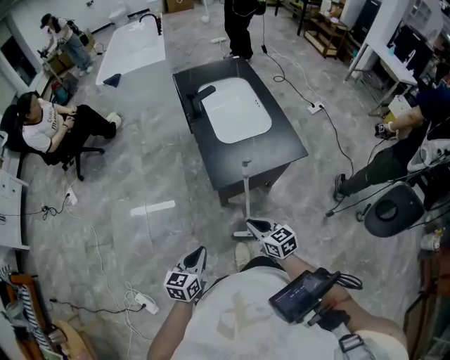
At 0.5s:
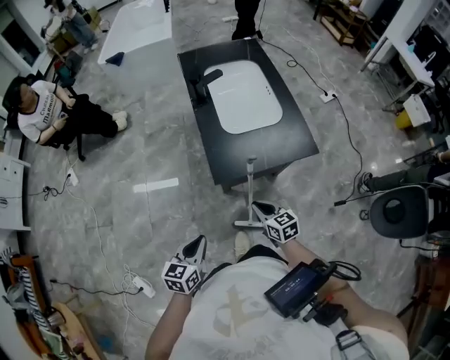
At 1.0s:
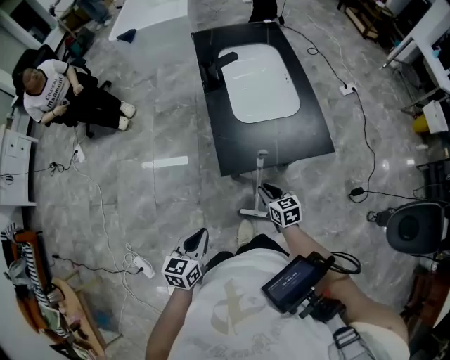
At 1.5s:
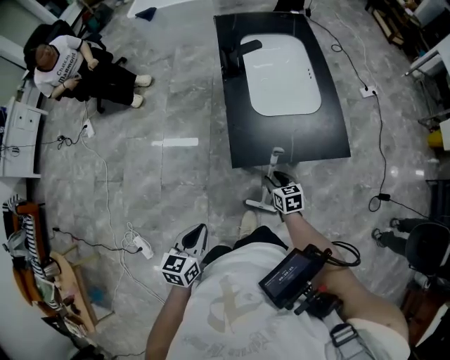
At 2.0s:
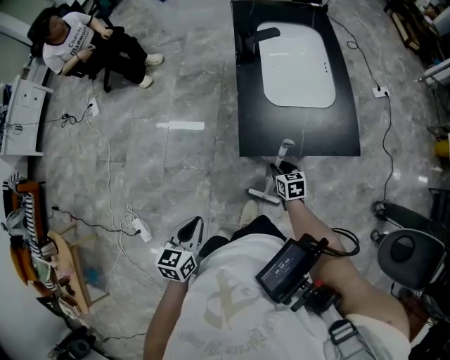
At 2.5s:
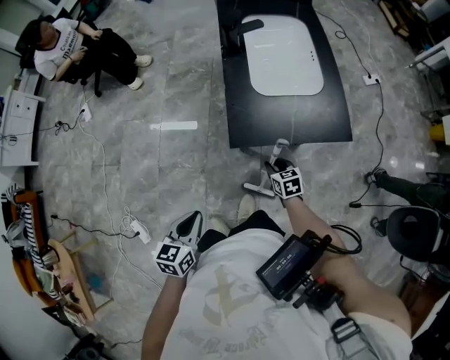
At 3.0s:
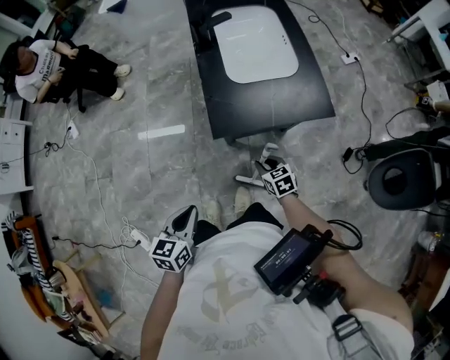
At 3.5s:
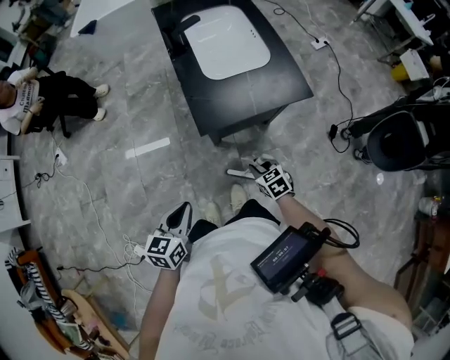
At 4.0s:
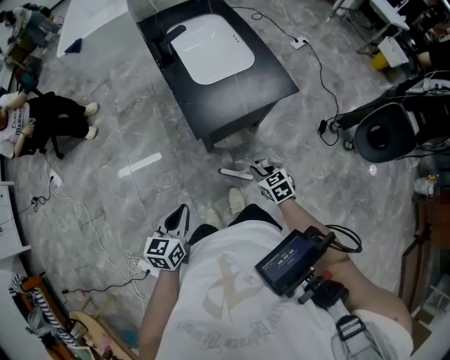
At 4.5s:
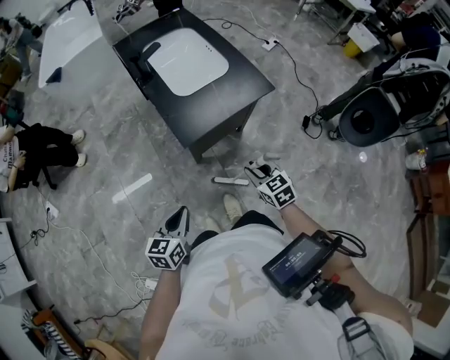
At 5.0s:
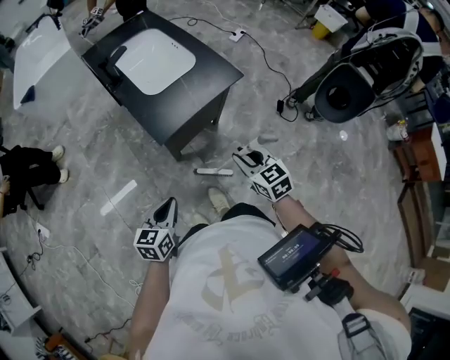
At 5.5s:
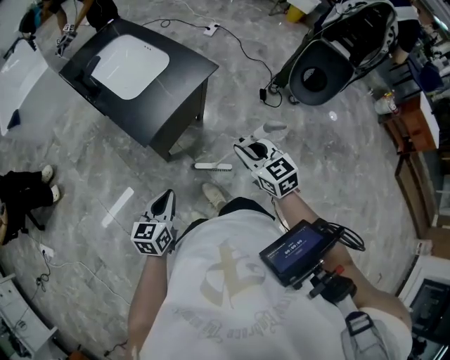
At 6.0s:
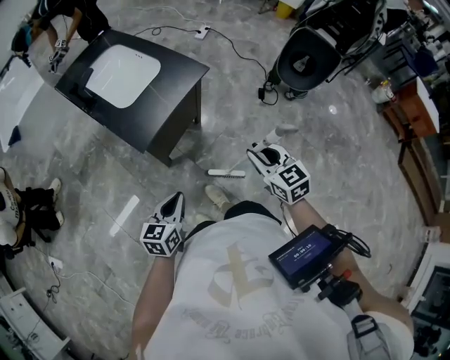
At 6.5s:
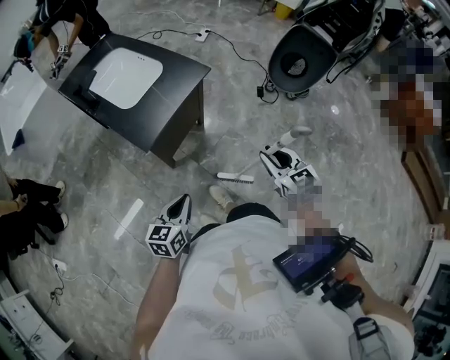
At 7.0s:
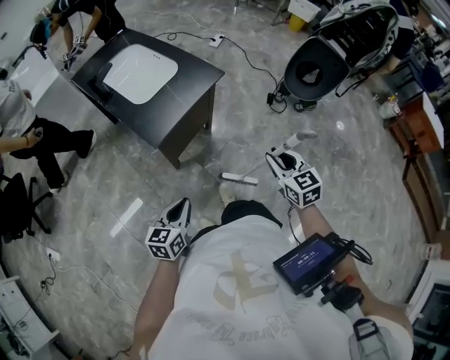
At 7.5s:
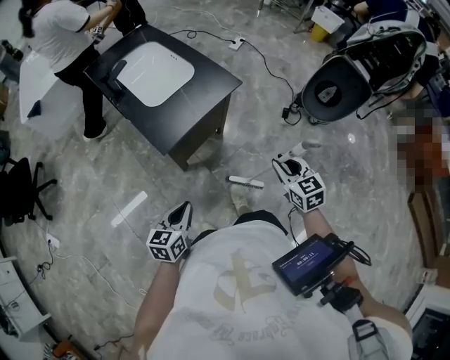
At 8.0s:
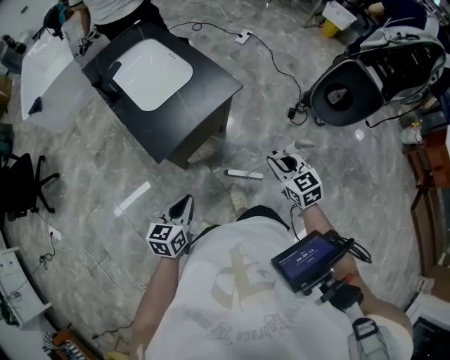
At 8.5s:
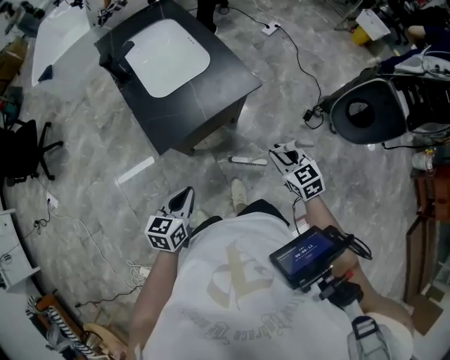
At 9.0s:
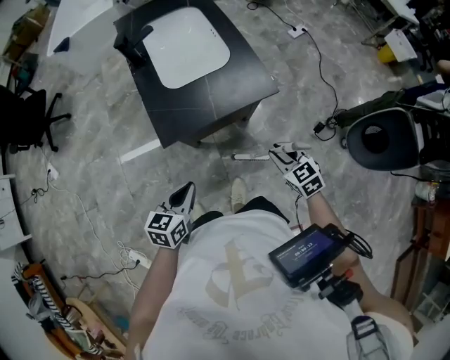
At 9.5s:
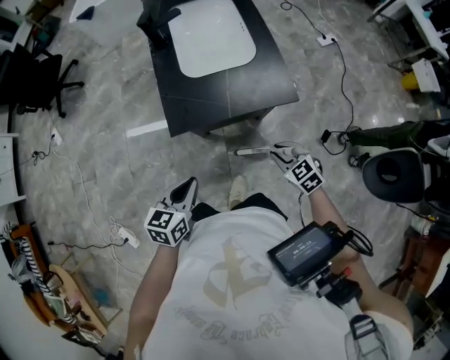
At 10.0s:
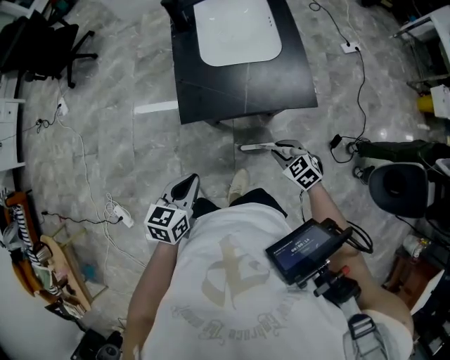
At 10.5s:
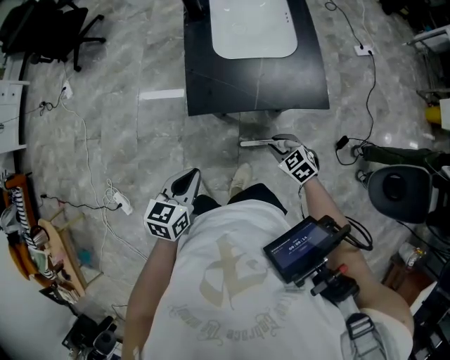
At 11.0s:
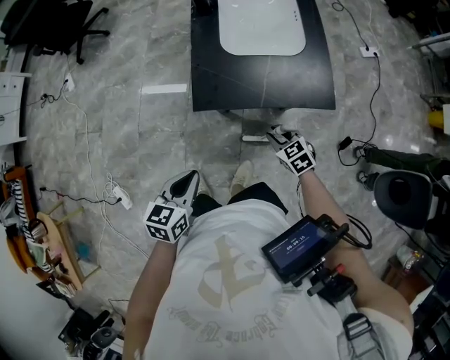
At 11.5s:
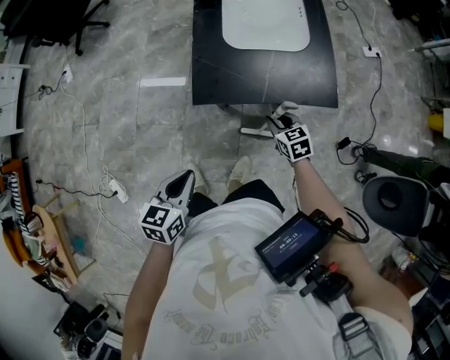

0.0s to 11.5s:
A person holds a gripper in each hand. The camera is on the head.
0.0s to 2.0s: The left gripper turns by about 20 degrees; the right gripper travels downward and forward by approximately 25 cm, and opens up.
2.0s to 4.0s: The right gripper heads backward and upward, covering some 15 cm, while the left gripper rotates about 20 degrees.
4.0s to 6.0s: The right gripper heads upward, covering some 20 cm, and changes its angle by roughly 30 degrees. Meanwhile the left gripper shifts by roughly 10 cm, and swivels about 30 degrees.
6.0s to 7.5s: The right gripper shifts by some 5 cm.
7.5s to 9.5s: The left gripper changes place by approximately 15 cm, and turns by some 30 degrees, while the right gripper shifts by roughly 25 cm, and swivels some 50 degrees.
9.5s to 11.5s: The right gripper shifts about 15 cm forward, downward and to the left, while the left gripper shifts roughly 5 cm to the left.

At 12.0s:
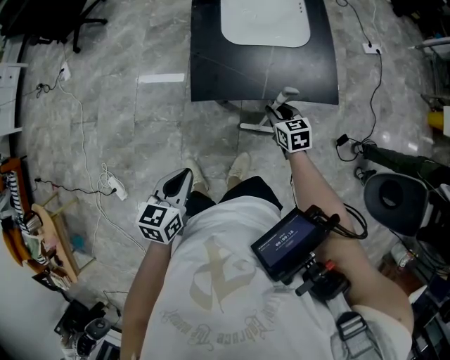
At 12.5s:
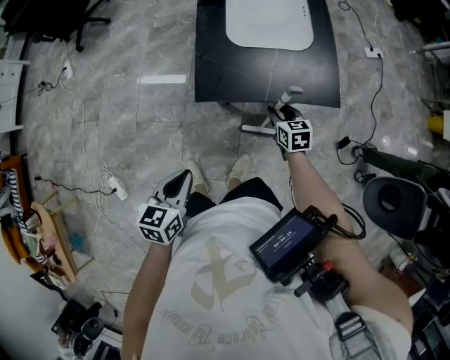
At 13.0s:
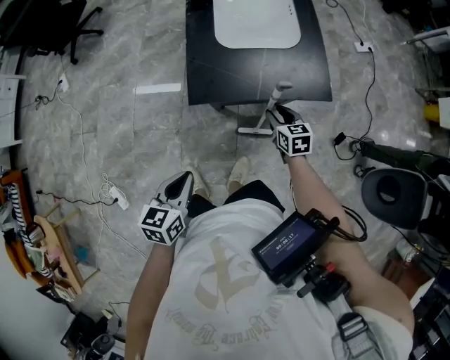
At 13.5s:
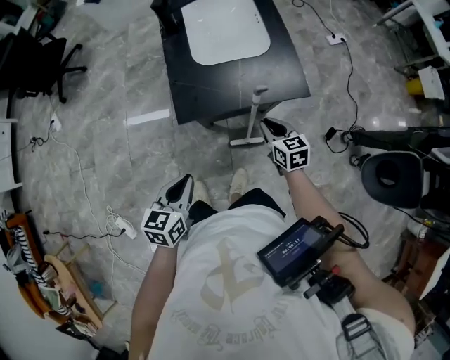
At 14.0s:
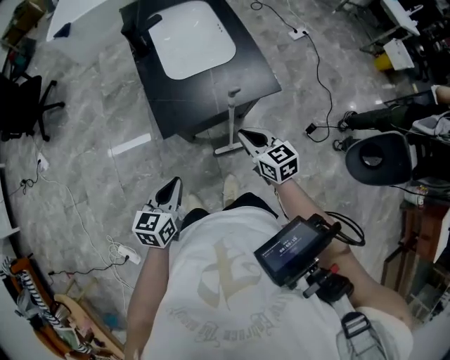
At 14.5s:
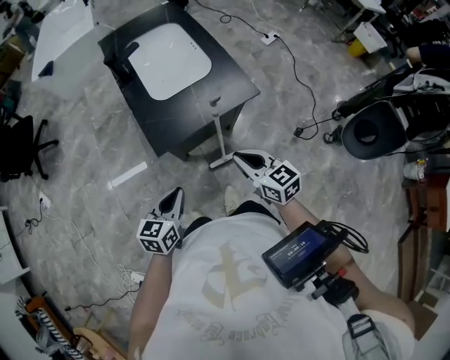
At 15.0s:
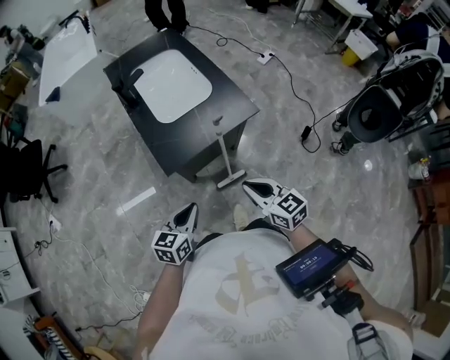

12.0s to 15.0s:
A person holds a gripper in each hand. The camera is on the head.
12.0s to 13.5s: The right gripper moves upward, approximately 10 cm.
13.5s to 15.0s: The left gripper changes its angle by roughly 20 degrees; the right gripper travels backward and upward by some 20 cm.

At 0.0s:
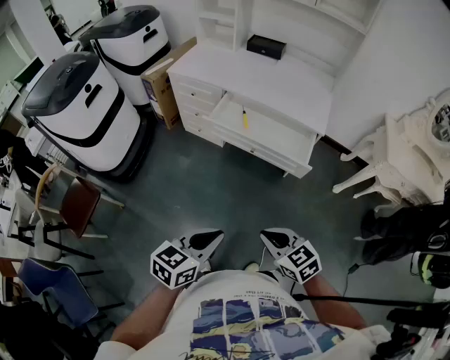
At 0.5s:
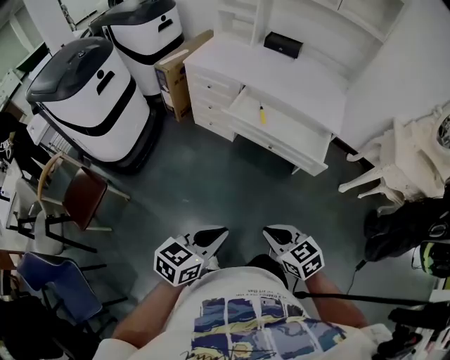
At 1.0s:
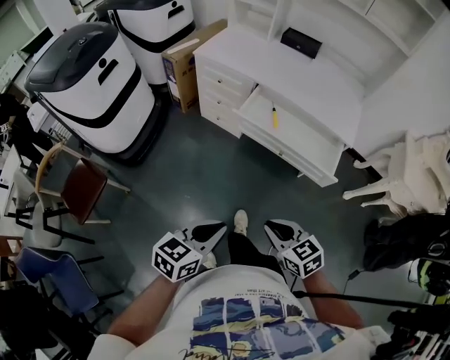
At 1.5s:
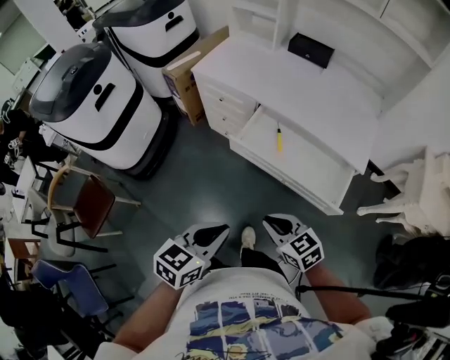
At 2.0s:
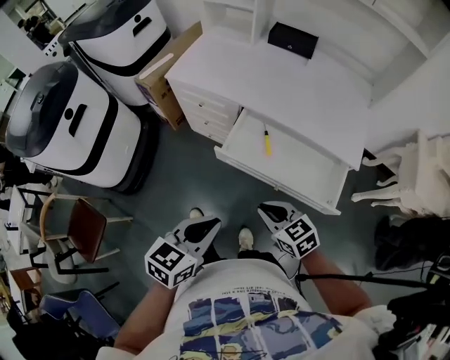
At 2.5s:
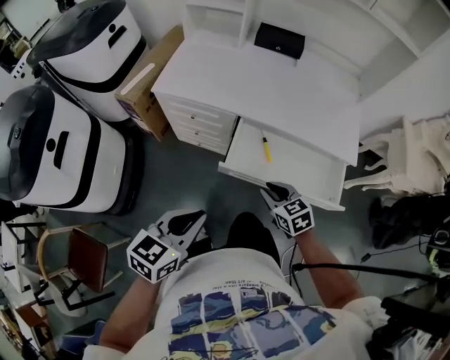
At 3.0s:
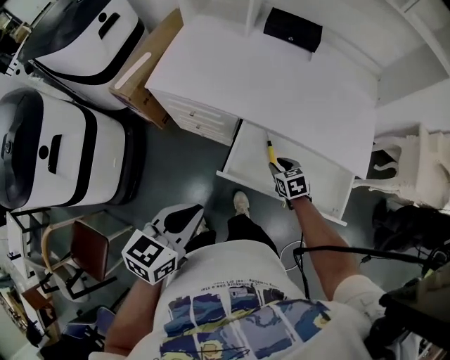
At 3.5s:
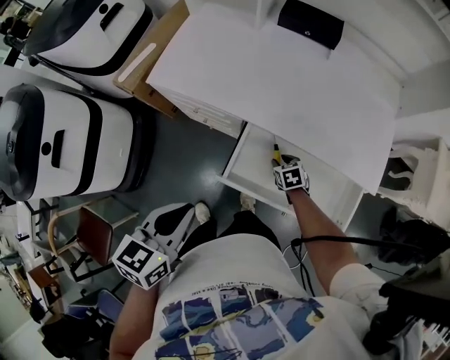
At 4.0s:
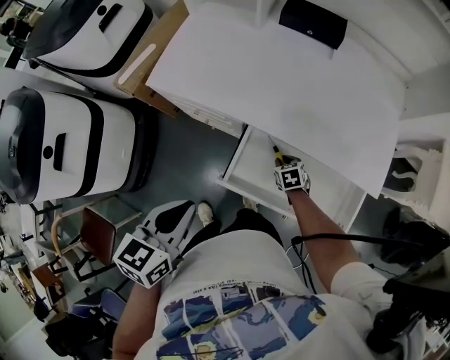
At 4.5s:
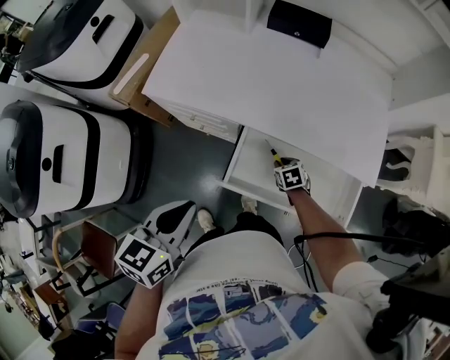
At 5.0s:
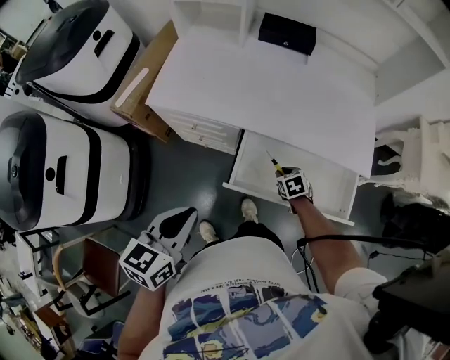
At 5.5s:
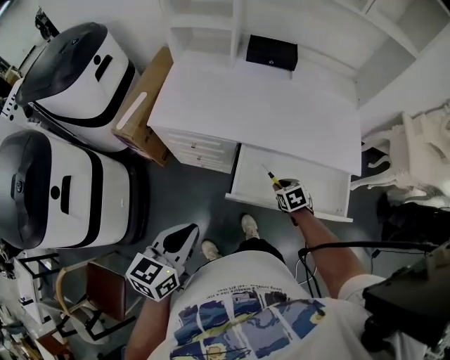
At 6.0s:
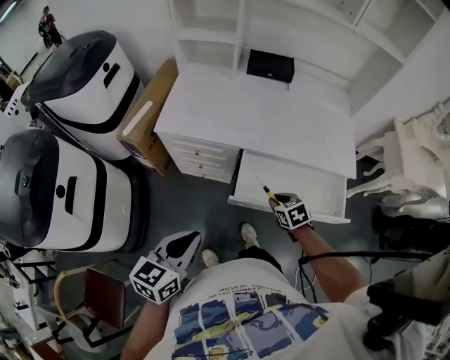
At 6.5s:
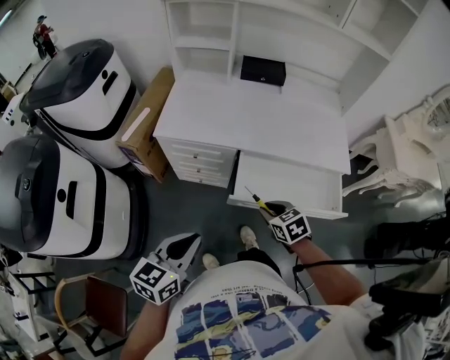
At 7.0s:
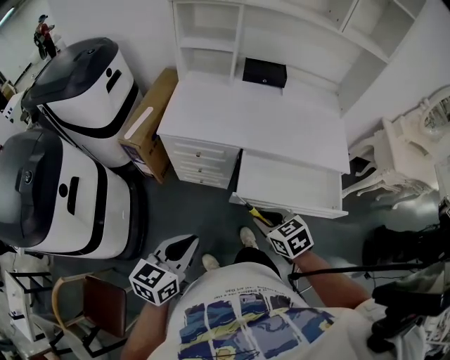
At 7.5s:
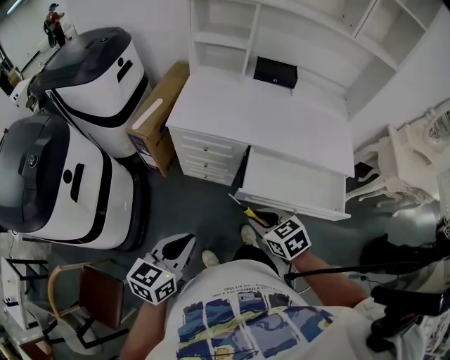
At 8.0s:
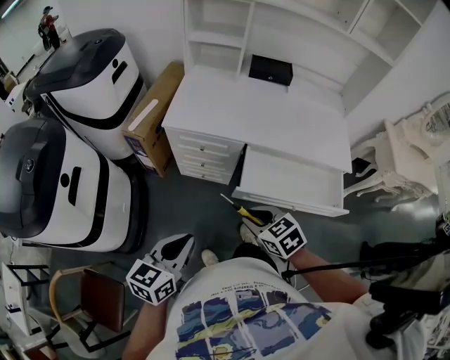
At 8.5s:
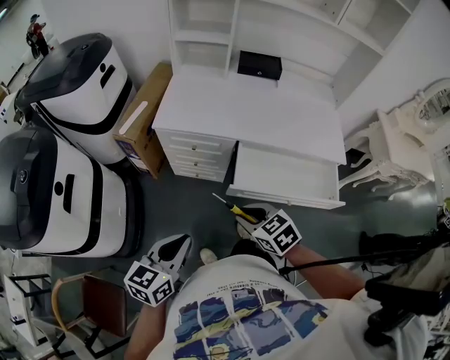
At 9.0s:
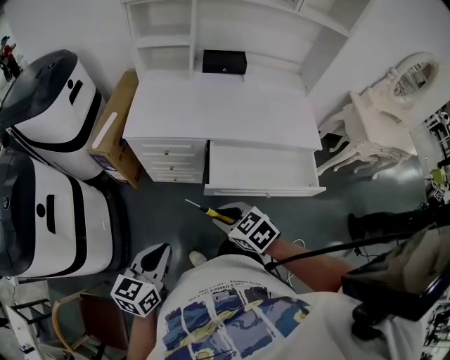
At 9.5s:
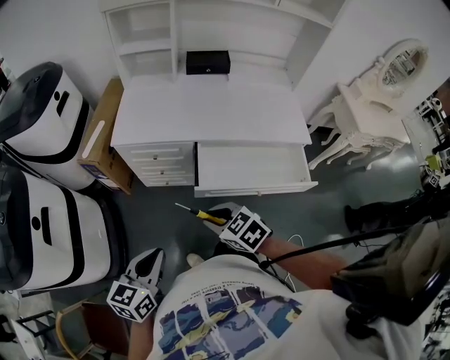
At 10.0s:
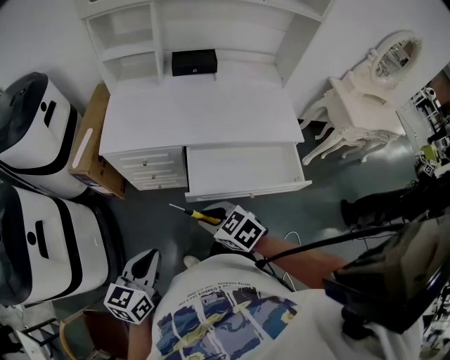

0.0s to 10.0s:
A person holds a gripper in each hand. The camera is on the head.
0.0s to 2.0s: Both grippers move forward, some 30 cm.
2.0s to 4.0s: The left gripper moves forward, about 20 cm. Meanwhile the right gripper travels forward and downward by roughly 40 cm, and turns by some 40 degrees.
4.0s to 6.0s: The right gripper heads upward and backward, covering approximately 20 cm; the left gripper heads backward and to the left, covering roughly 15 cm.
6.0s to 8.0s: The left gripper moves to the left and backward, approximately 10 cm. Meanwhile the right gripper moves to the left, upward and backward, roughly 25 cm.
8.0s to 10.0s: The grippers make only small movements.

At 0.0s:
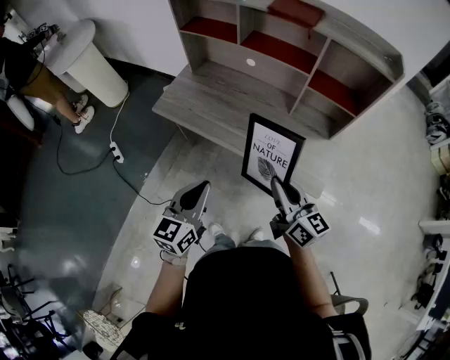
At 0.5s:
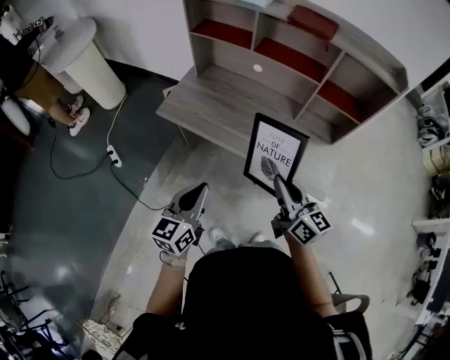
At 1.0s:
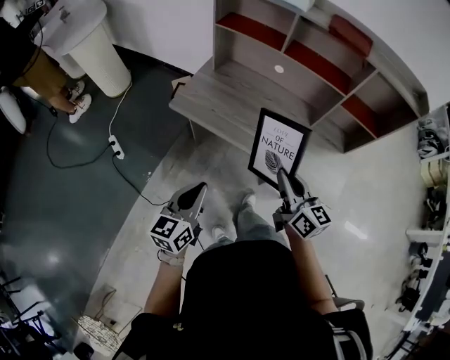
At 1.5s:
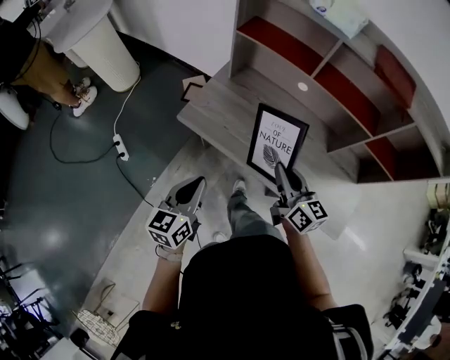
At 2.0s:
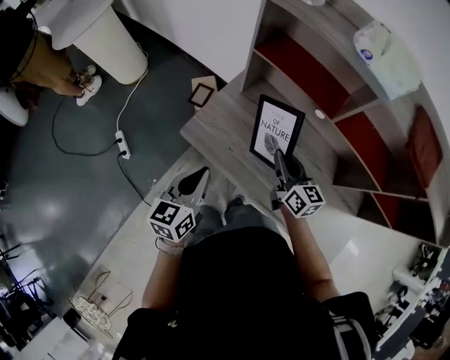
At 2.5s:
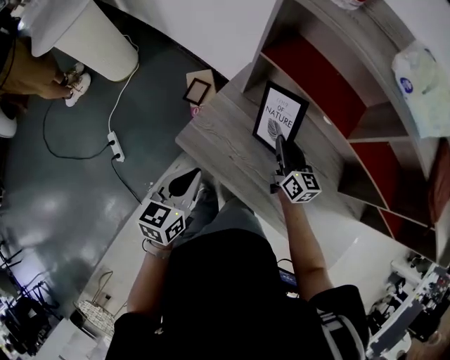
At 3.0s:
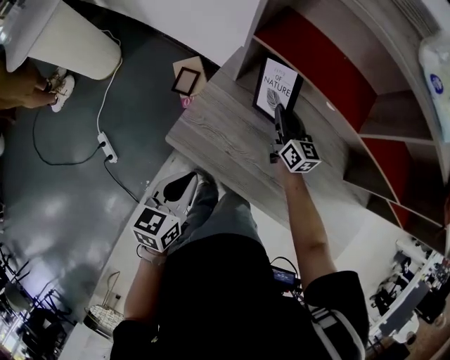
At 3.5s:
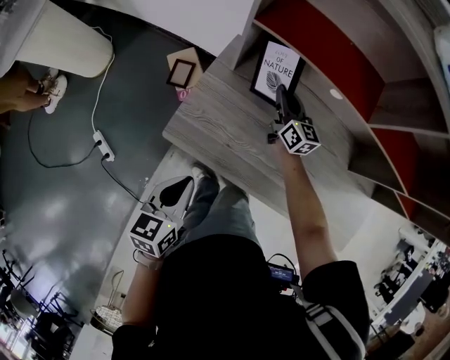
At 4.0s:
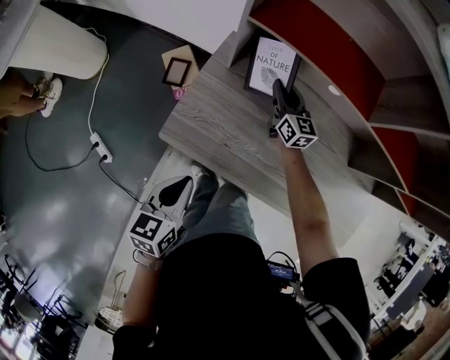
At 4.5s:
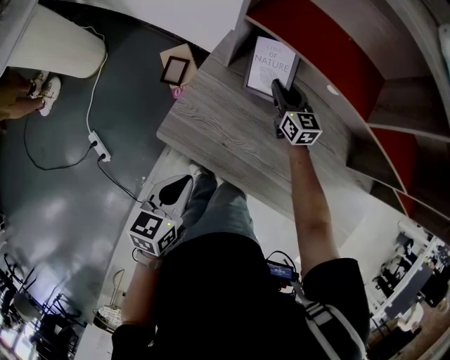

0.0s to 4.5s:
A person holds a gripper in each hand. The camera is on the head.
0.0s to 2.0s: Both grippers move forward and to the left, approximately 40 cm.
2.0s to 4.5s: The left gripper moves downward, some 15 cm, and turns by some 20 degrees; the right gripper shifts about 30 cm forward and downward, and opens its fingers.
